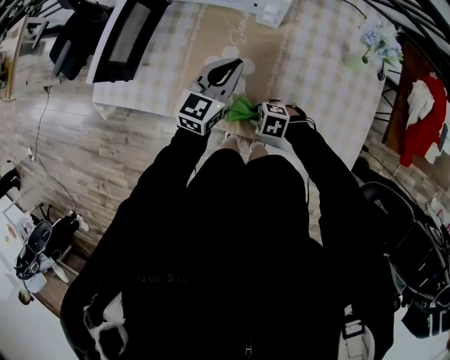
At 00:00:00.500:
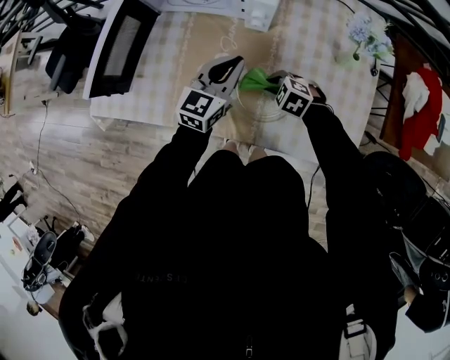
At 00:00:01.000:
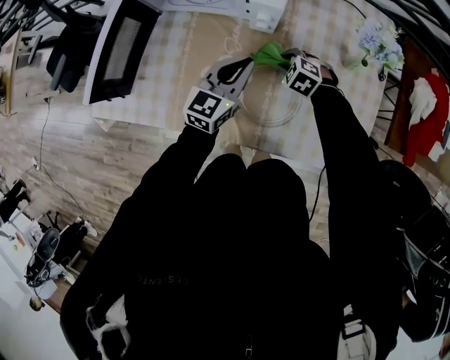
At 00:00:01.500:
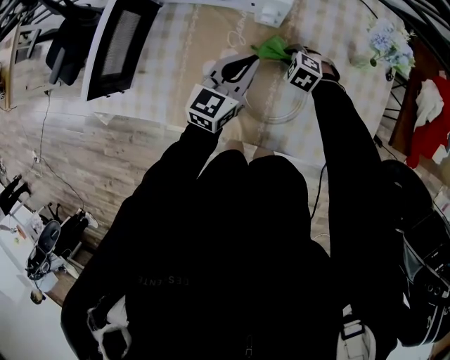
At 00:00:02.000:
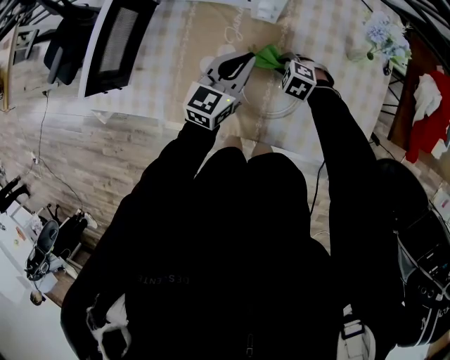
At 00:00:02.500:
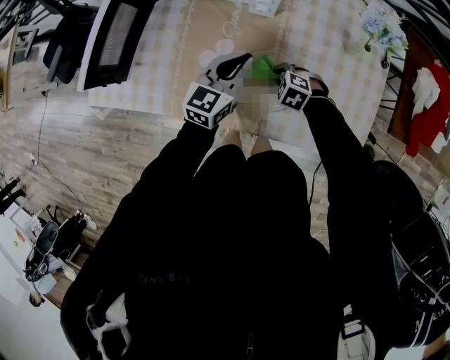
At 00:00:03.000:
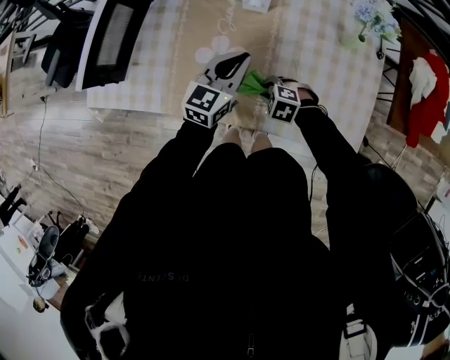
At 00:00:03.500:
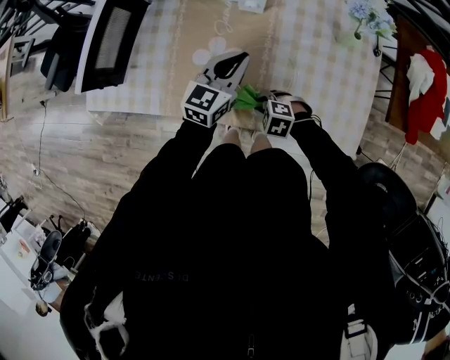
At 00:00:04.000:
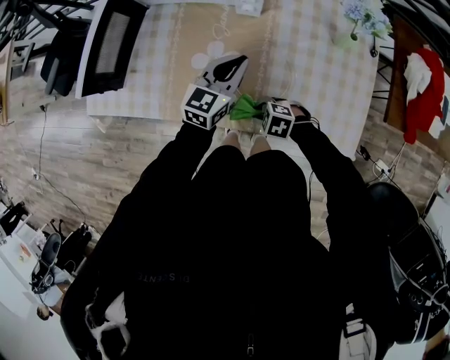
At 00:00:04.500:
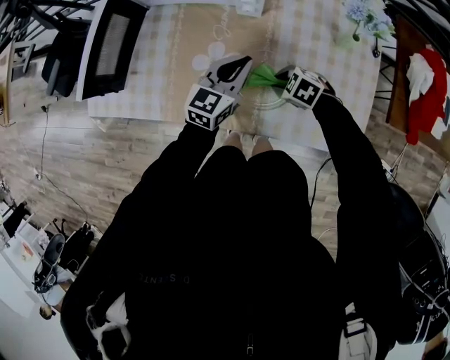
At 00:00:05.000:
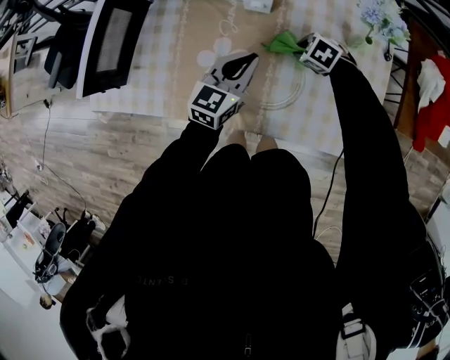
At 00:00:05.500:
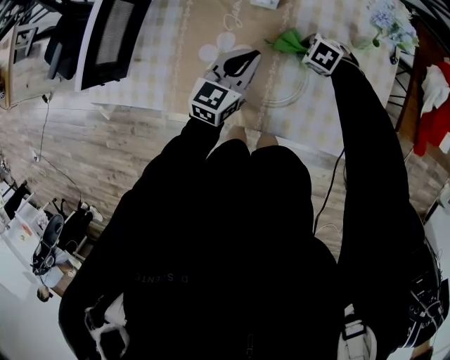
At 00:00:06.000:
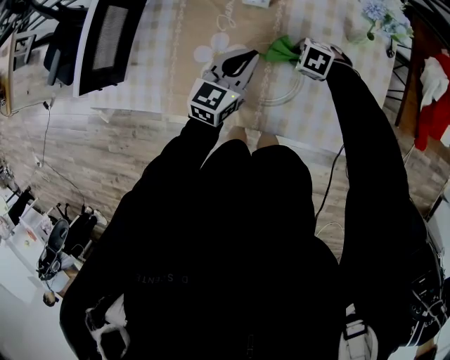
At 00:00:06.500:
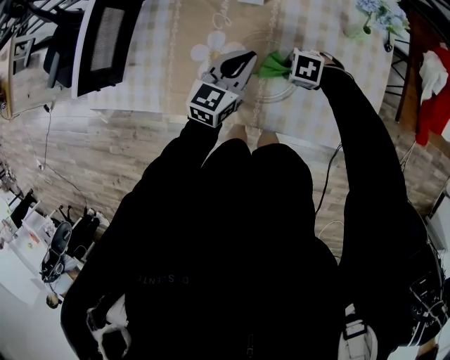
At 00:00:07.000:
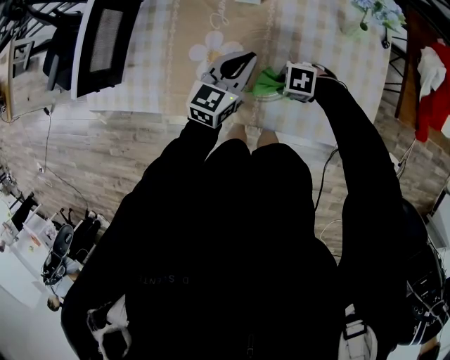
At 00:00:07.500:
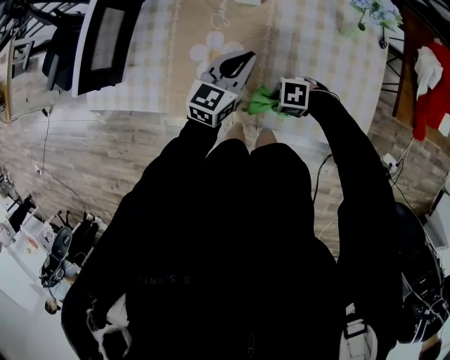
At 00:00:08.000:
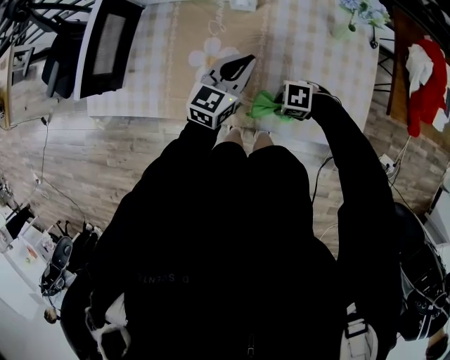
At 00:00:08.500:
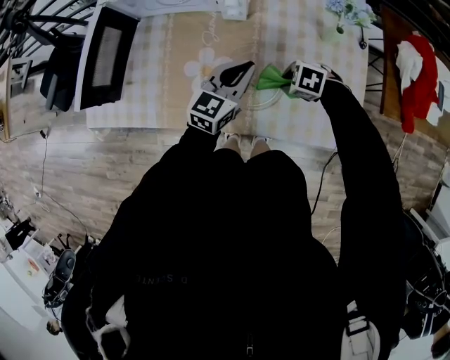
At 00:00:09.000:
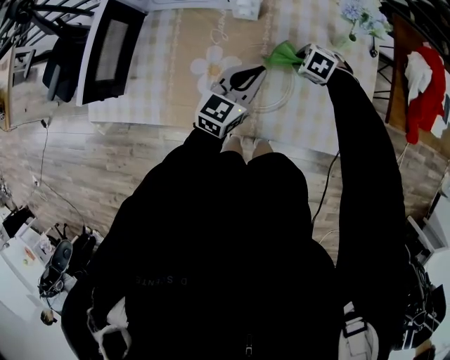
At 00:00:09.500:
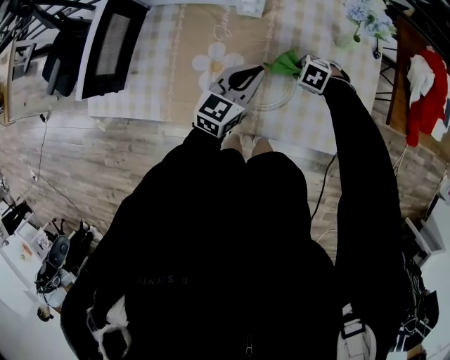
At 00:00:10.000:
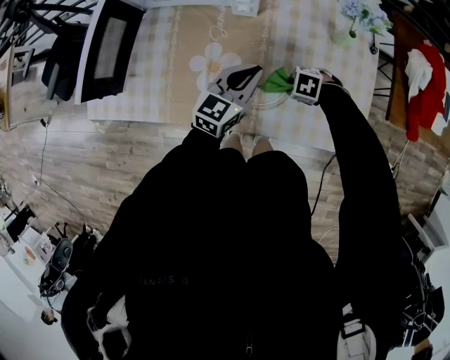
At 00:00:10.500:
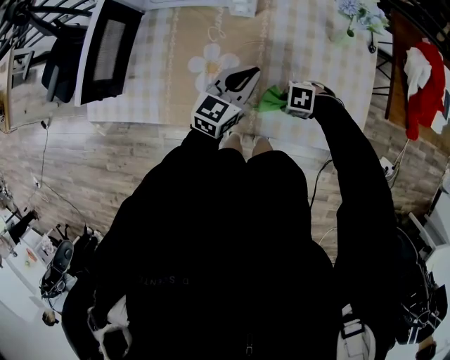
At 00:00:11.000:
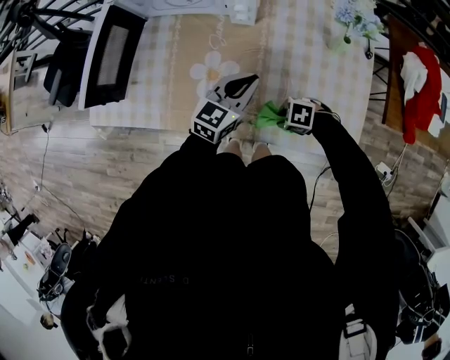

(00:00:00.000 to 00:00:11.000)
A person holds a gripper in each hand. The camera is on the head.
00:00:00.000 - 00:00:02.000: The left gripper ends up approximately 5 cm from where it was. The right gripper moves about 20 cm, and turns by about 20 degrees.
00:00:02.000 - 00:00:03.500: The right gripper travels backward and to the left by some 20 cm.
00:00:03.500 - 00:00:05.500: The right gripper shifts by about 20 cm.
00:00:05.500 - 00:00:07.500: The right gripper ends up some 20 cm from where it was, and swivels approximately 30 degrees.
00:00:07.500 - 00:00:09.000: The right gripper ends up approximately 20 cm from where it was, and turns by about 30 degrees.
00:00:09.000 - 00:00:11.000: The right gripper moves about 20 cm, and changes its angle by roughly 30 degrees.

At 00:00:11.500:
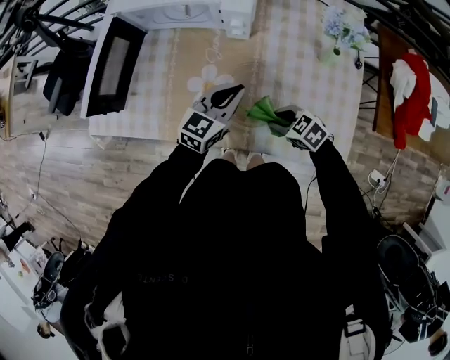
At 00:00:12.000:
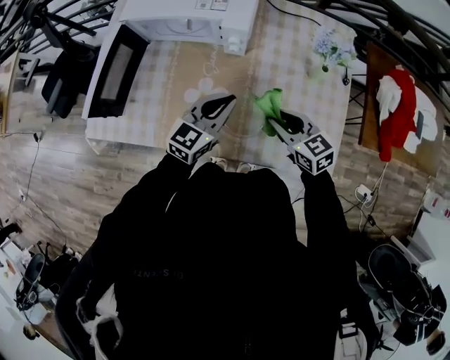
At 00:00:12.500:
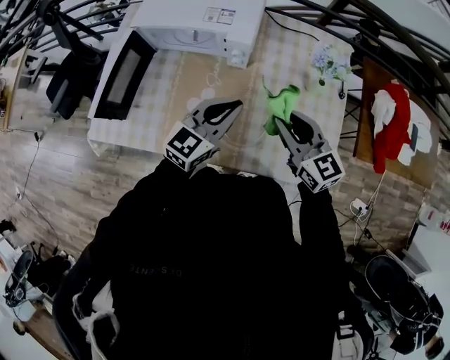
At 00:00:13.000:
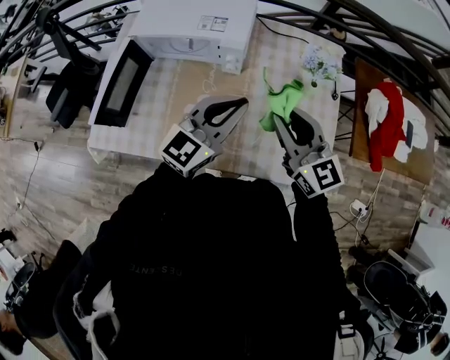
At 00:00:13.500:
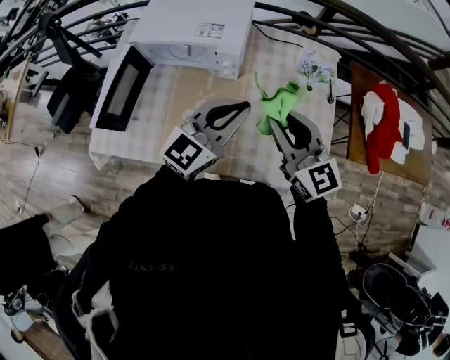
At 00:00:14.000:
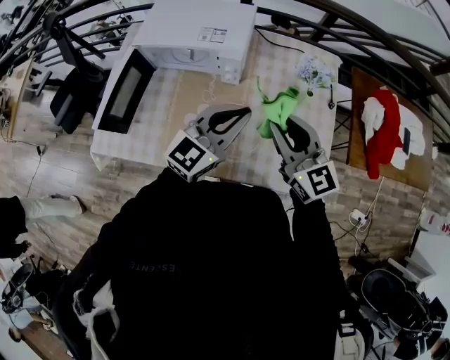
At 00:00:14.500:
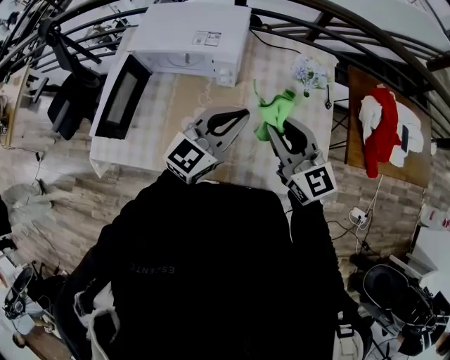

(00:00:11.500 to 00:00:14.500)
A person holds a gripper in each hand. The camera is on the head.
00:00:11.500 - 00:00:13.000: The left gripper is displaced upward by roughly 20 cm; the right gripper is displaced upward by approximately 30 cm, and points its fingers approximately 50 degrees further upward.
00:00:13.000 - 00:00:14.500: The grippers make only small movements.

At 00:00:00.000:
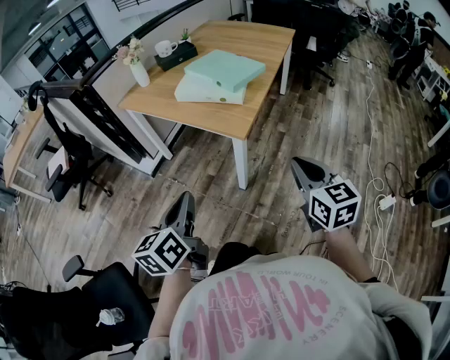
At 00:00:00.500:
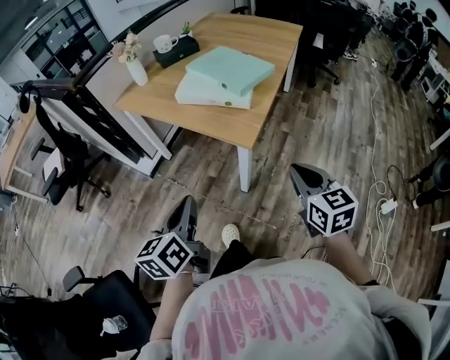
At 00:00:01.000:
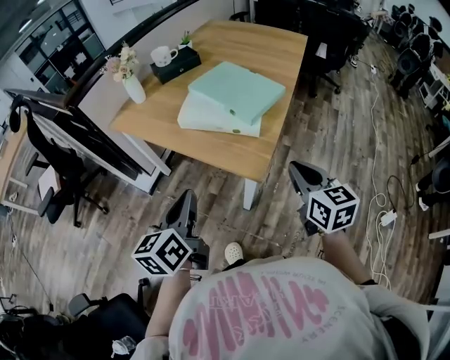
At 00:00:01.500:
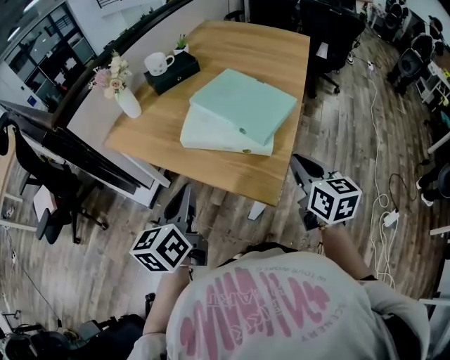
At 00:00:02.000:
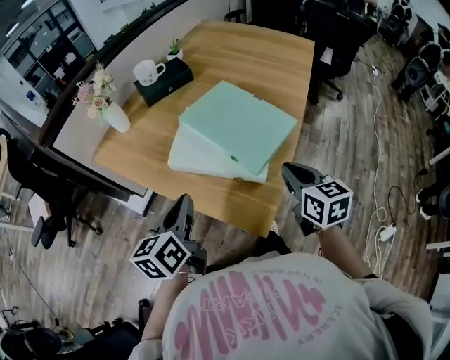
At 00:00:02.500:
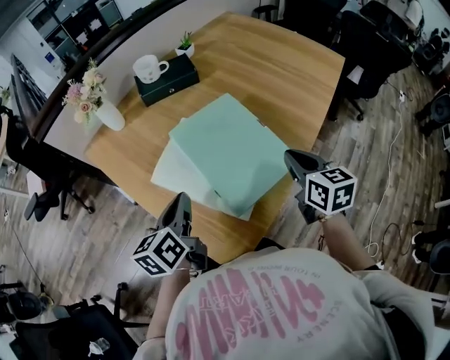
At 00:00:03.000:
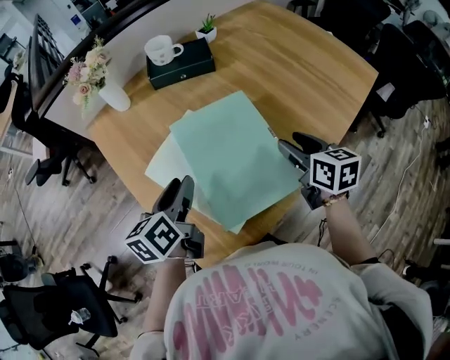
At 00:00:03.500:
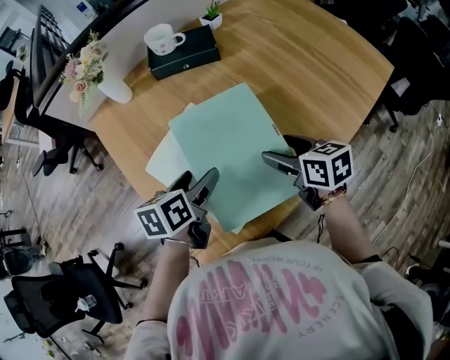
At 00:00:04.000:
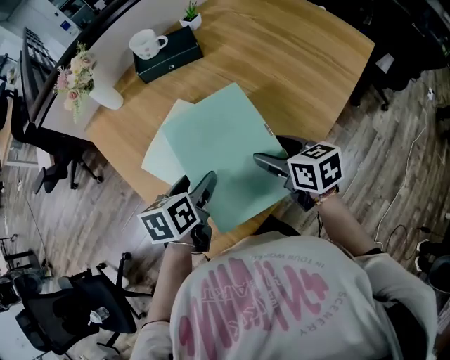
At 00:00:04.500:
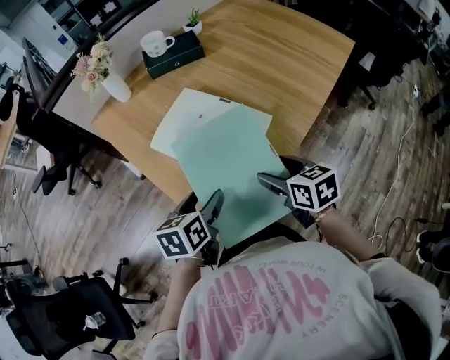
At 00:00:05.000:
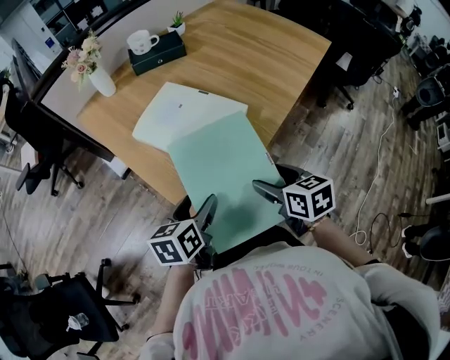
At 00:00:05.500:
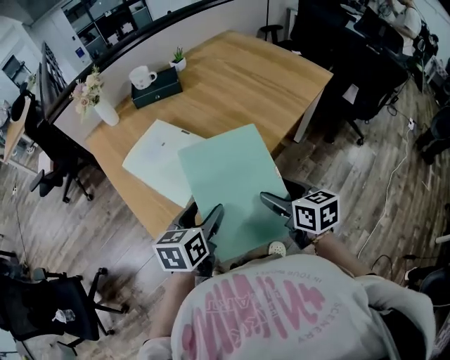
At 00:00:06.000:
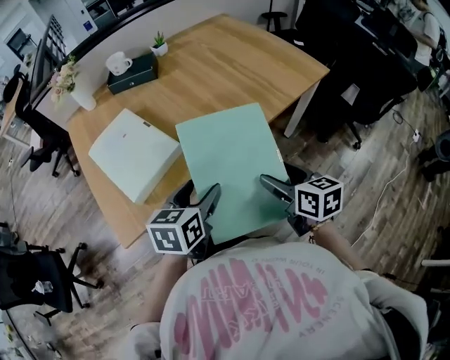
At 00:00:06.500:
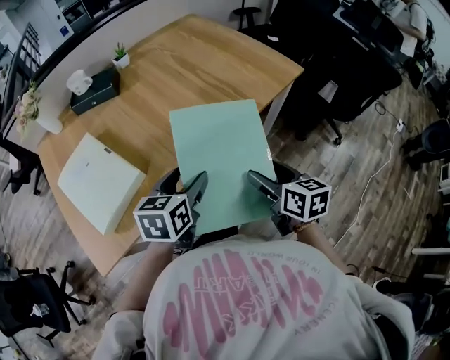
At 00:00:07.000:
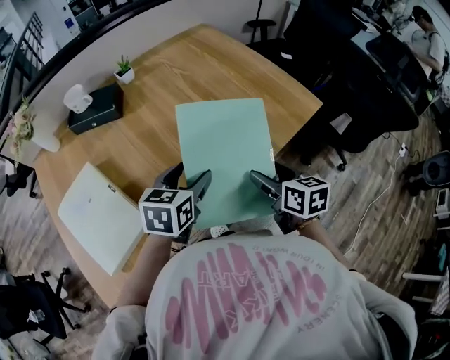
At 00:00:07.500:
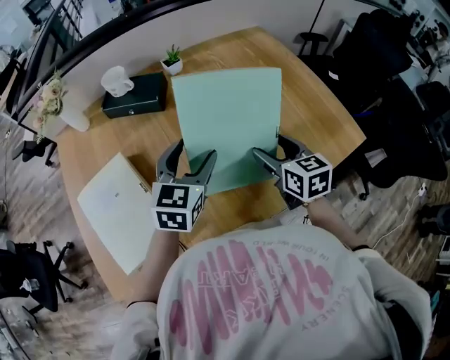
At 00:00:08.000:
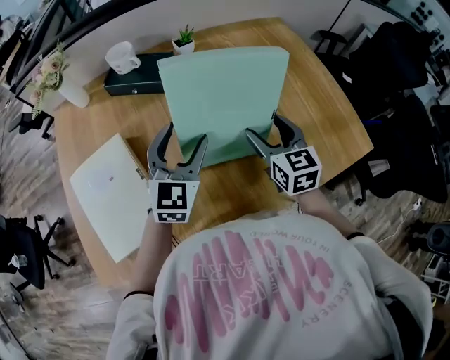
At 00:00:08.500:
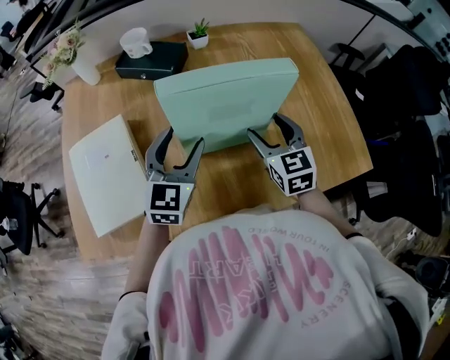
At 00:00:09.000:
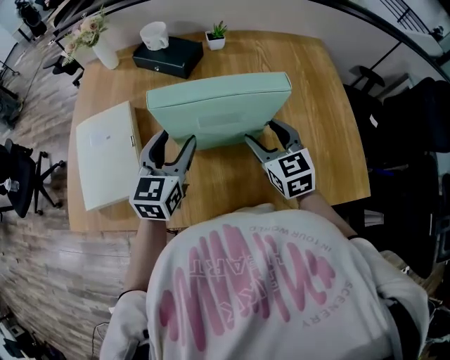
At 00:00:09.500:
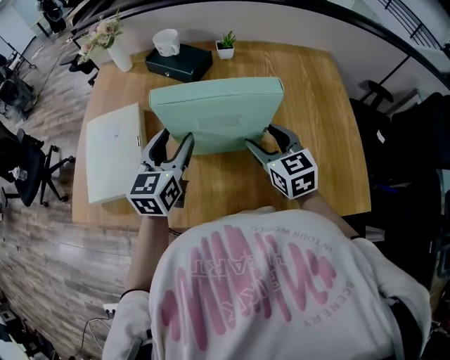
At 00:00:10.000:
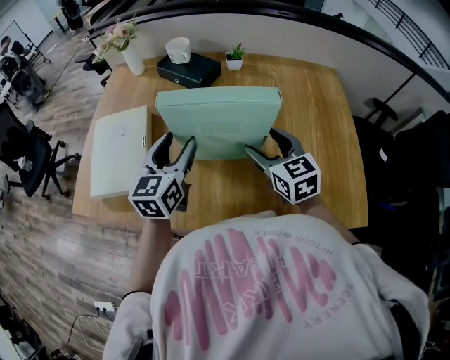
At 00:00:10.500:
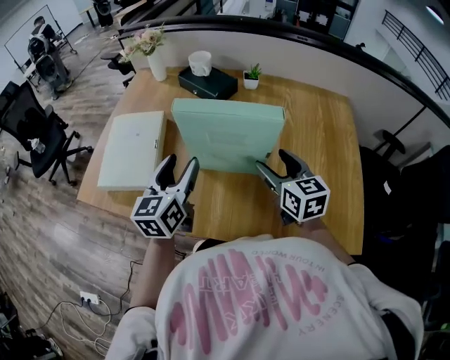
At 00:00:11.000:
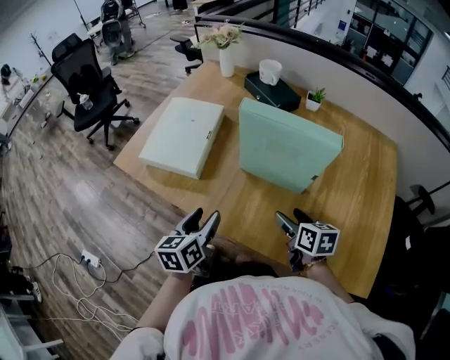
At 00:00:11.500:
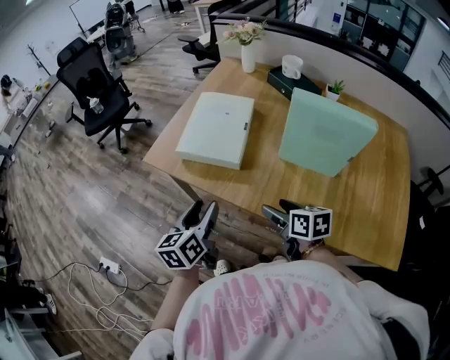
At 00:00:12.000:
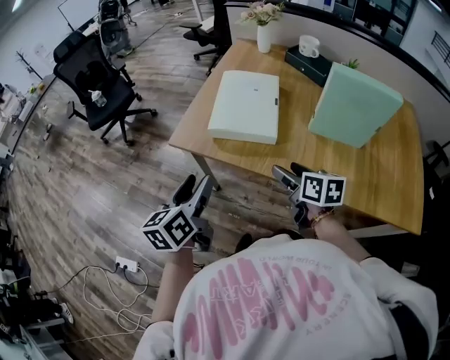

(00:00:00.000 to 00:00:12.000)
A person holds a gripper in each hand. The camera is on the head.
00:00:00.000 - 00:00:02.000: Both grippers are carried forward, roughly 40 cm.
00:00:02.000 - 00:00:04.000: The left gripper changes place by roughly 20 cm, rotates some 30 degrees, and opens, while the right gripper moves some 20 cm, rotates approximately 40 degrees, and opens.
00:00:04.000 - 00:00:06.000: Both grippers travel together to the right and backward, approximately 35 cm.
00:00:06.000 - 00:00:08.000: The two grippers go roughly 40 cm forward. The right gripper rotates some 30 degrees. The left gripper changes its angle by approximately 40 degrees.
00:00:08.000 - 00:00:10.000: The right gripper changes its angle by about 30 degrees, while the left gripper shifts by roughly 5 cm, and turns by approximately 40 degrees.
00:00:10.000 - 00:00:12.000: The right gripper ends up roughly 35 cm from where it was, and turns by some 40 degrees, while the left gripper travels downward and back again, some 10 cm each way, and swivels roughly 30 degrees.
